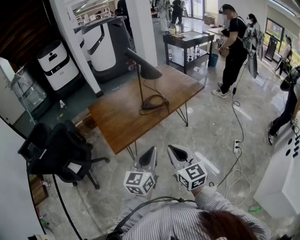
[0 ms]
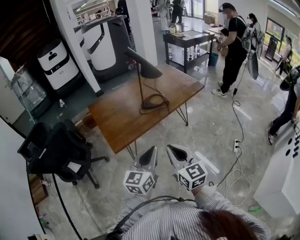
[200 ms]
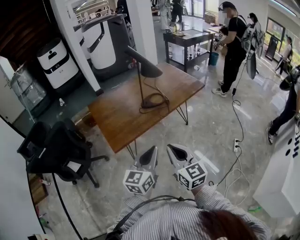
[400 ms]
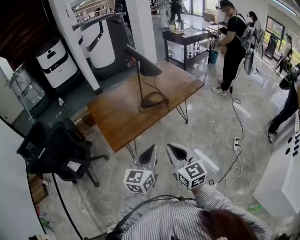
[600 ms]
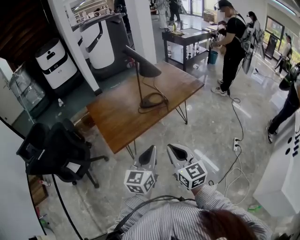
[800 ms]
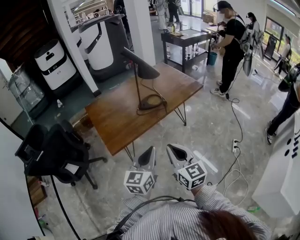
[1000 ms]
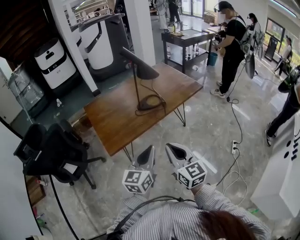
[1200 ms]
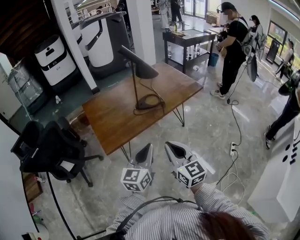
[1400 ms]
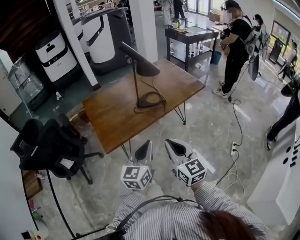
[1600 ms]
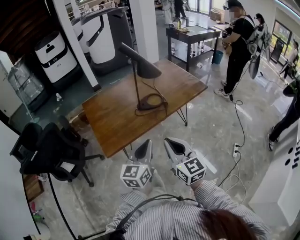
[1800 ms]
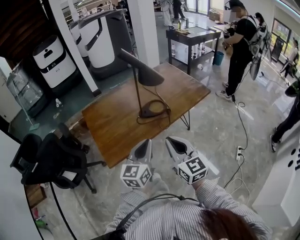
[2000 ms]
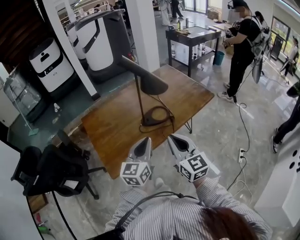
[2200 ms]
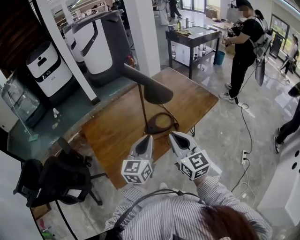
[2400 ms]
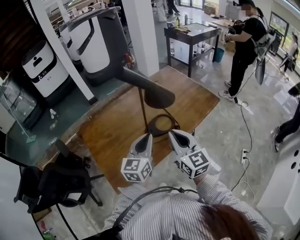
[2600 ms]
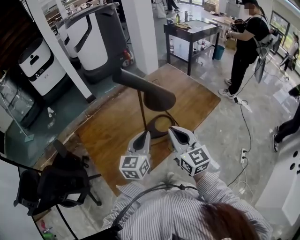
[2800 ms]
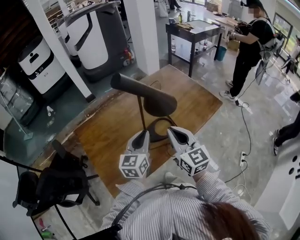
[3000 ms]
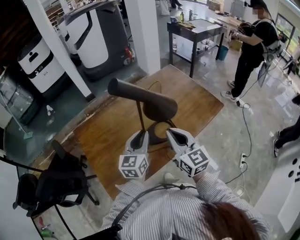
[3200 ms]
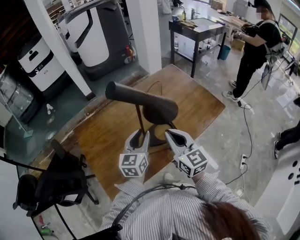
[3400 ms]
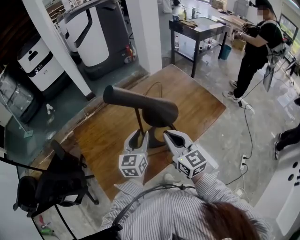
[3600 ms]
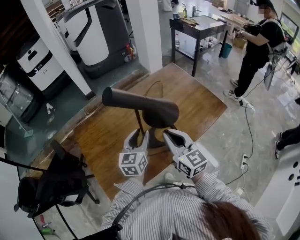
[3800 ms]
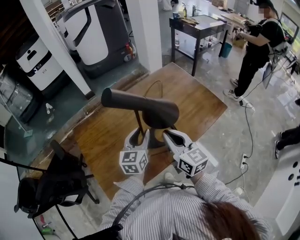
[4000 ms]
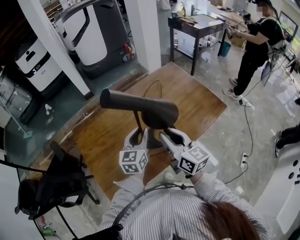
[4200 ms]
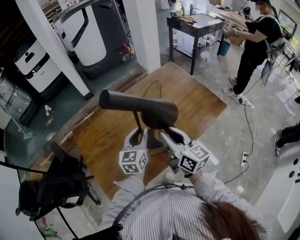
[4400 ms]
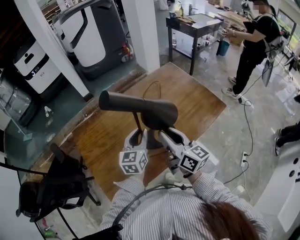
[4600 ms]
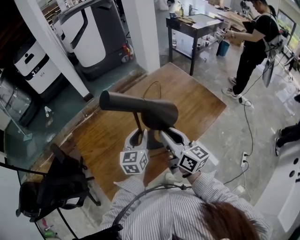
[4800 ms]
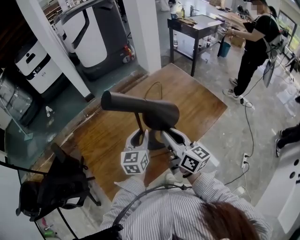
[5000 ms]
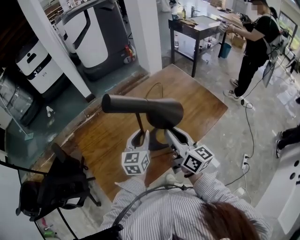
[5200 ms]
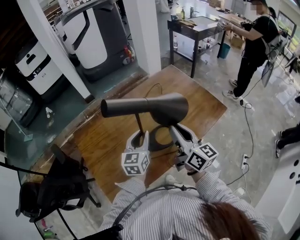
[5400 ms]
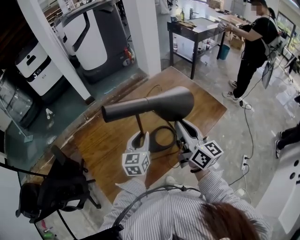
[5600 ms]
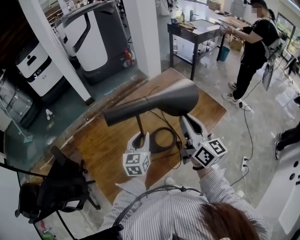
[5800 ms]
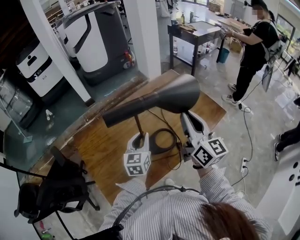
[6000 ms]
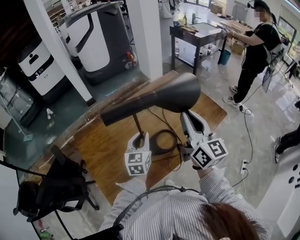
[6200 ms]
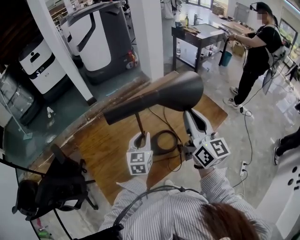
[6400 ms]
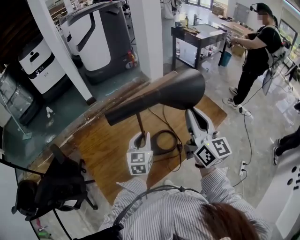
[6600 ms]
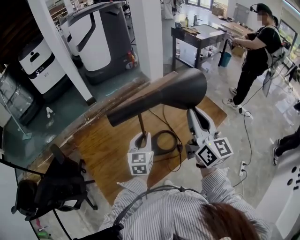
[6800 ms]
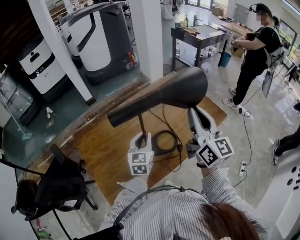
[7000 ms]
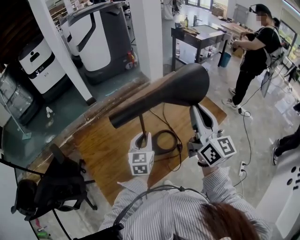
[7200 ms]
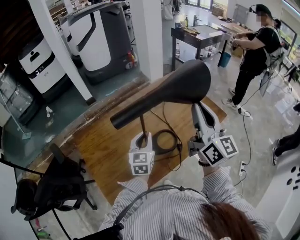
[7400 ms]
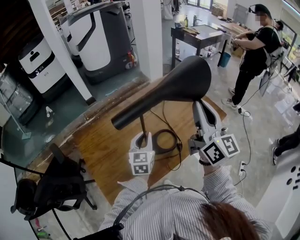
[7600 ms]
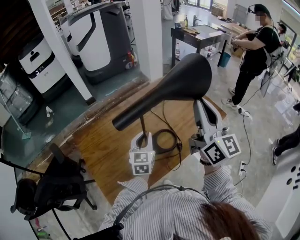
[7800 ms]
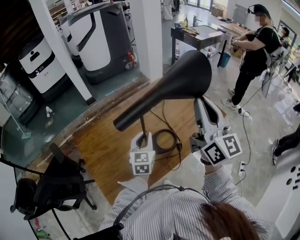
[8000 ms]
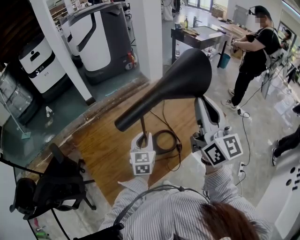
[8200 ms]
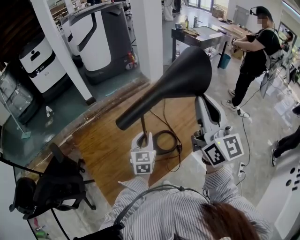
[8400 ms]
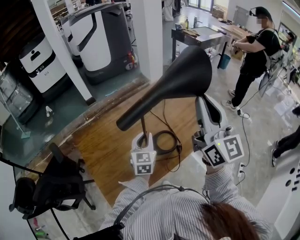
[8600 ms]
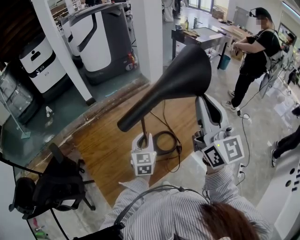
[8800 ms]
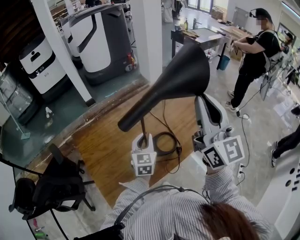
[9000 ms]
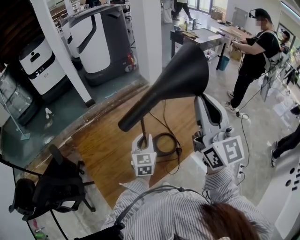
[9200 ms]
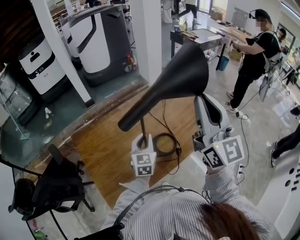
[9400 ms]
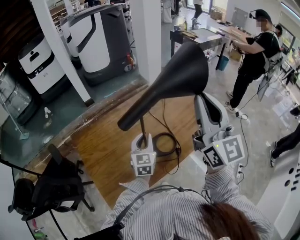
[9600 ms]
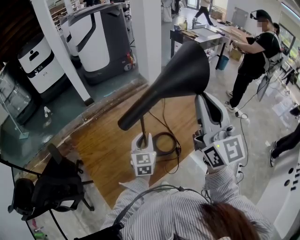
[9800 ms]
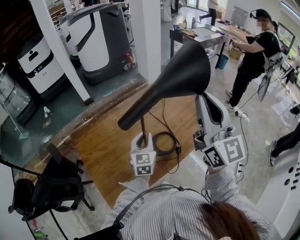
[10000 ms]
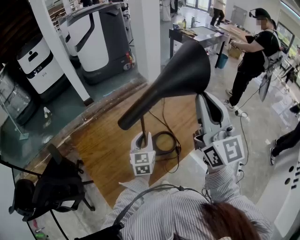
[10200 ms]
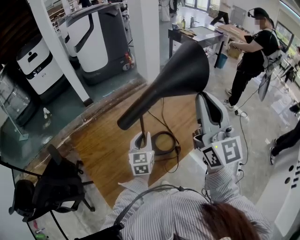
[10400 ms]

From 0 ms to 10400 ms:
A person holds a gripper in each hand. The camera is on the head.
From 0 ms to 1400 ms: The right gripper changes place by roughly 5 cm. The left gripper shifts by about 5 cm.
From 1400 ms to 3000 ms: The two grippers go some 40 cm forward.
From 3000 ms to 4400 ms: Both grippers travel together forward, roughly 5 cm. The right gripper rotates some 20 degrees, and opens.
From 4400 ms to 6000 ms: The right gripper travels upward and to the right by approximately 10 cm, and changes its angle by about 20 degrees.
From 6000 ms to 7400 ms: The right gripper goes roughly 5 cm upward.
From 7400 ms to 9000 ms: The right gripper heads upward, covering some 5 cm.
From 9000 ms to 10400 ms: The grippers move only a little.

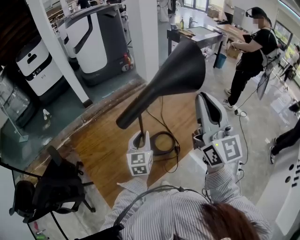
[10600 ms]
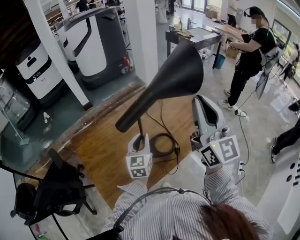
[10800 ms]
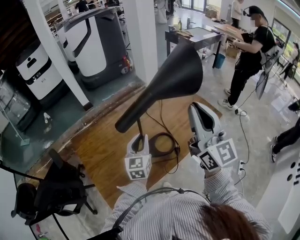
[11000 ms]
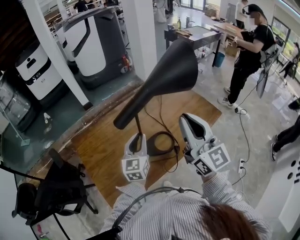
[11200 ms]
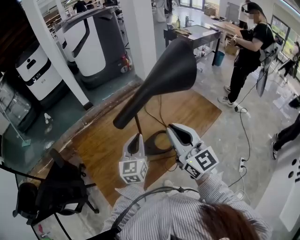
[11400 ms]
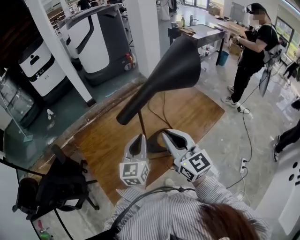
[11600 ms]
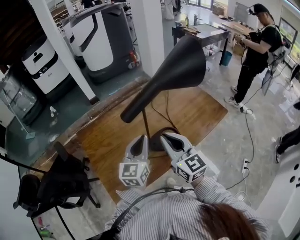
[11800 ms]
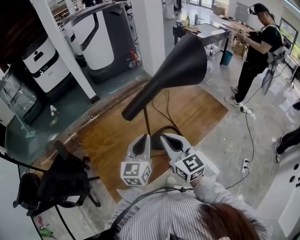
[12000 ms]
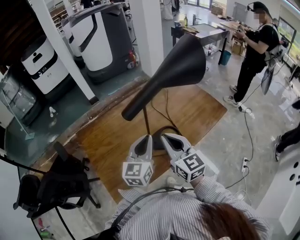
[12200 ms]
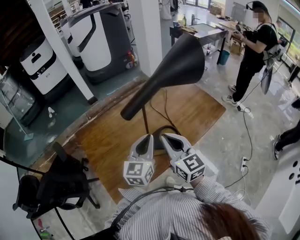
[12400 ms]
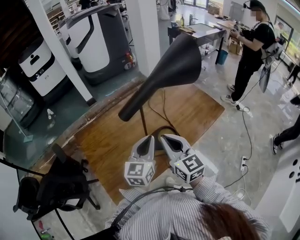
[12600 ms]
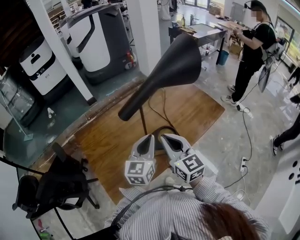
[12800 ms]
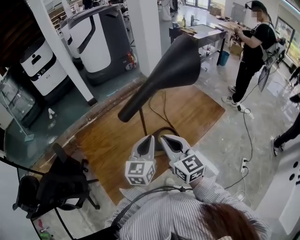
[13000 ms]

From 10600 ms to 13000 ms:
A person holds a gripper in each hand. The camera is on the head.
From 10600 ms to 11800 ms: The left gripper shifts approximately 10 cm backward and upward, while the right gripper heads downward and to the left, covering approximately 25 cm, and turns by approximately 30 degrees.
From 11800 ms to 13000 ms: There are only small adjustments of the grippers.

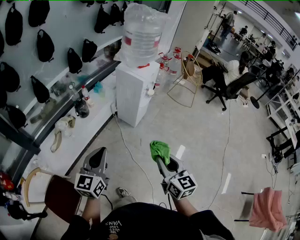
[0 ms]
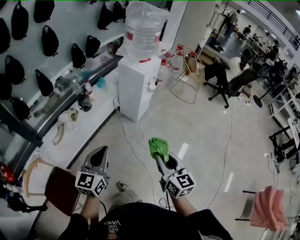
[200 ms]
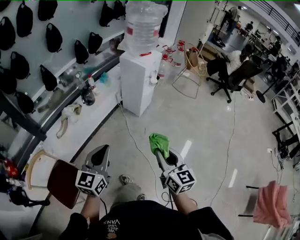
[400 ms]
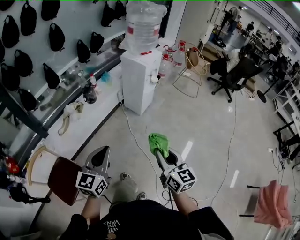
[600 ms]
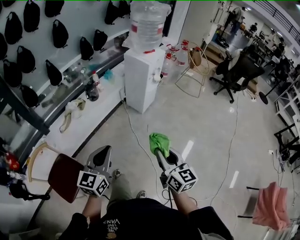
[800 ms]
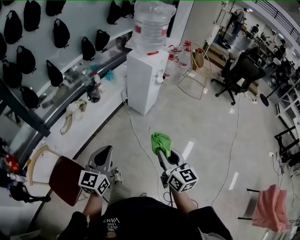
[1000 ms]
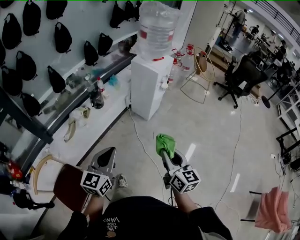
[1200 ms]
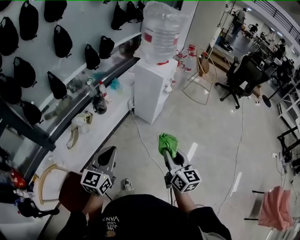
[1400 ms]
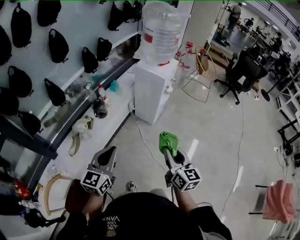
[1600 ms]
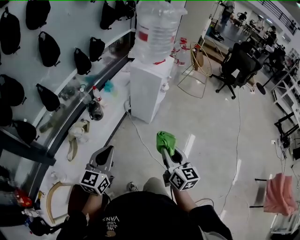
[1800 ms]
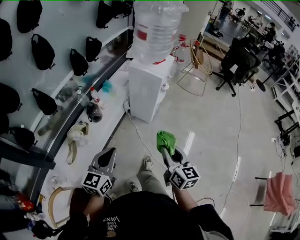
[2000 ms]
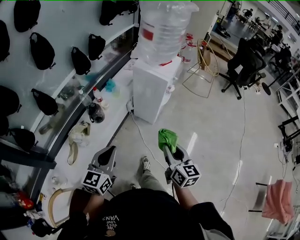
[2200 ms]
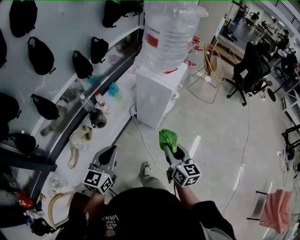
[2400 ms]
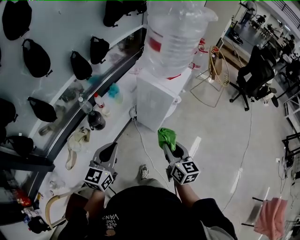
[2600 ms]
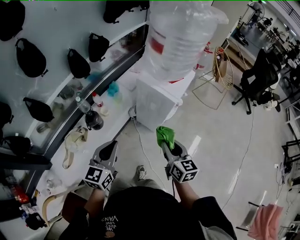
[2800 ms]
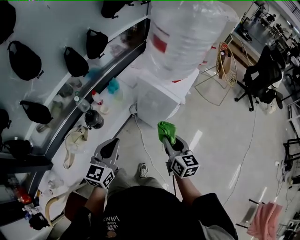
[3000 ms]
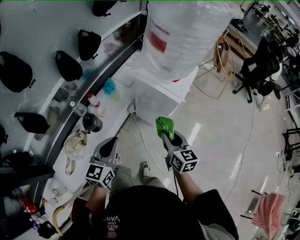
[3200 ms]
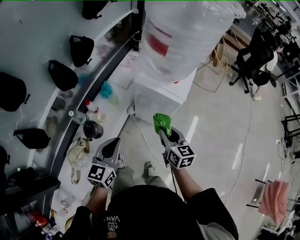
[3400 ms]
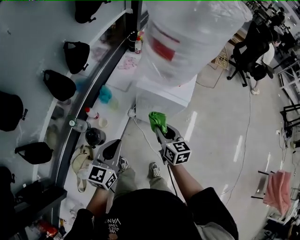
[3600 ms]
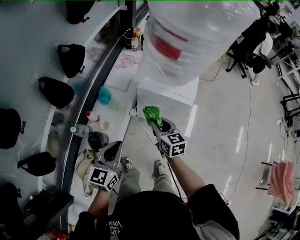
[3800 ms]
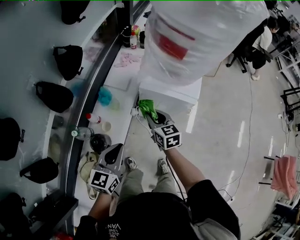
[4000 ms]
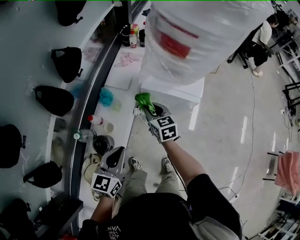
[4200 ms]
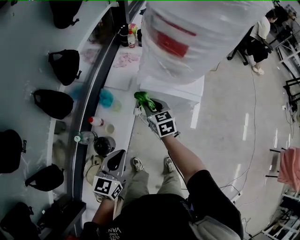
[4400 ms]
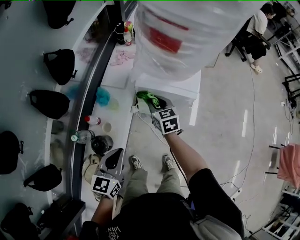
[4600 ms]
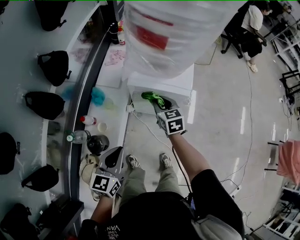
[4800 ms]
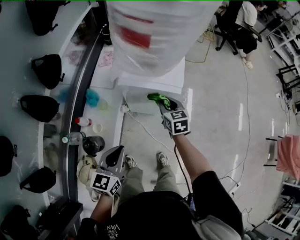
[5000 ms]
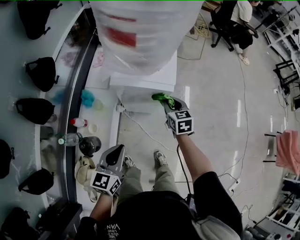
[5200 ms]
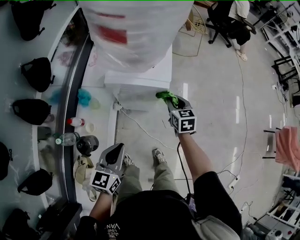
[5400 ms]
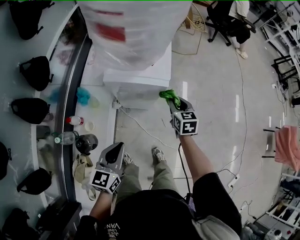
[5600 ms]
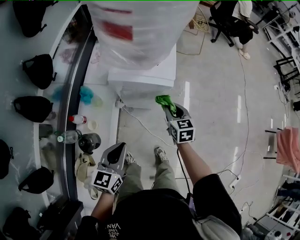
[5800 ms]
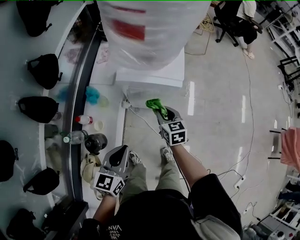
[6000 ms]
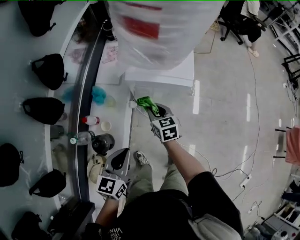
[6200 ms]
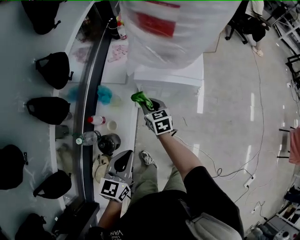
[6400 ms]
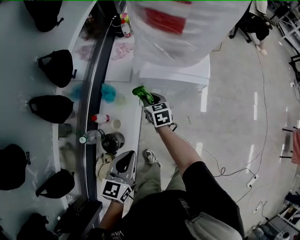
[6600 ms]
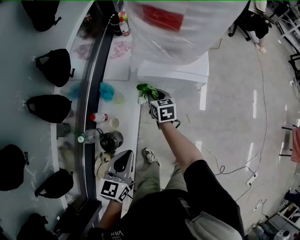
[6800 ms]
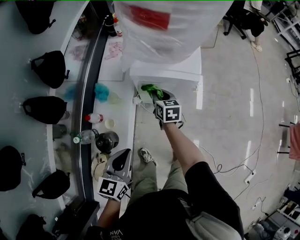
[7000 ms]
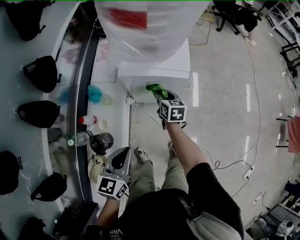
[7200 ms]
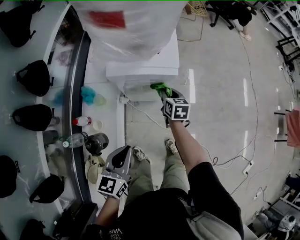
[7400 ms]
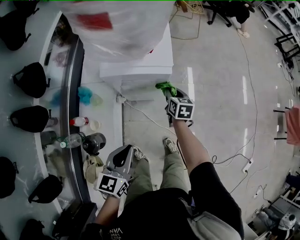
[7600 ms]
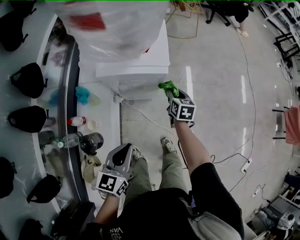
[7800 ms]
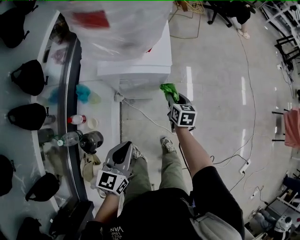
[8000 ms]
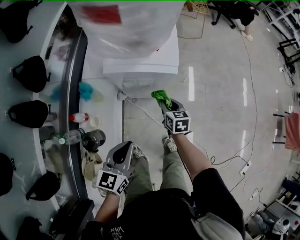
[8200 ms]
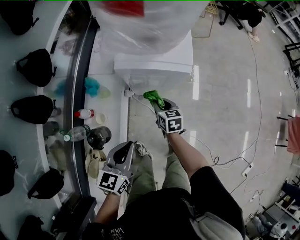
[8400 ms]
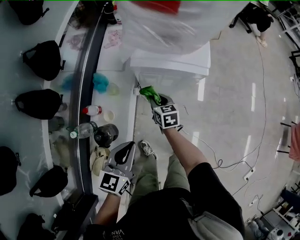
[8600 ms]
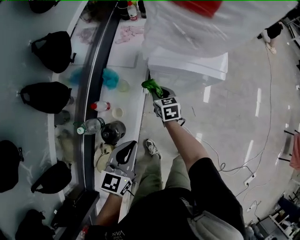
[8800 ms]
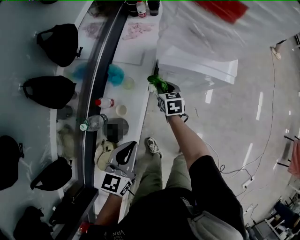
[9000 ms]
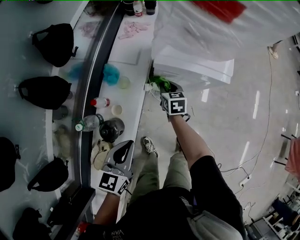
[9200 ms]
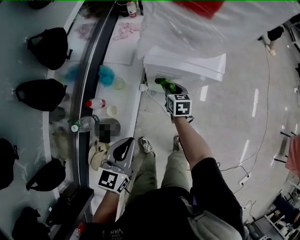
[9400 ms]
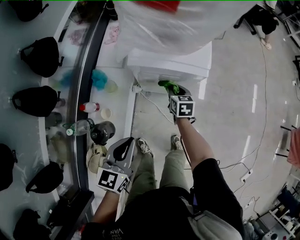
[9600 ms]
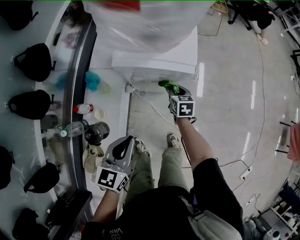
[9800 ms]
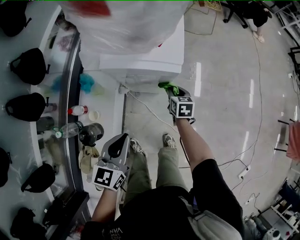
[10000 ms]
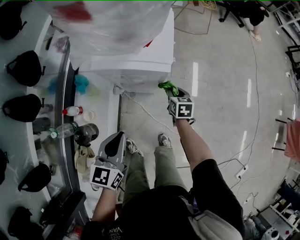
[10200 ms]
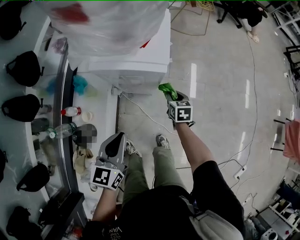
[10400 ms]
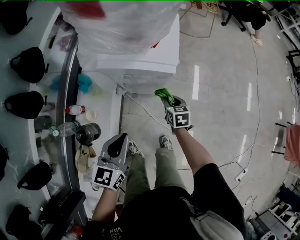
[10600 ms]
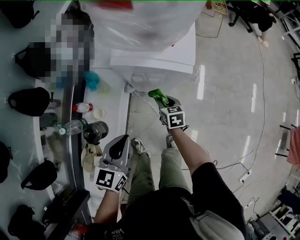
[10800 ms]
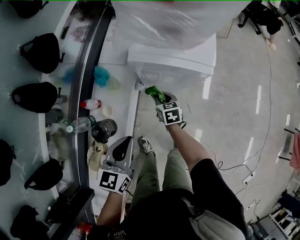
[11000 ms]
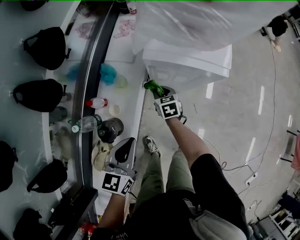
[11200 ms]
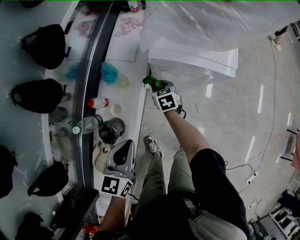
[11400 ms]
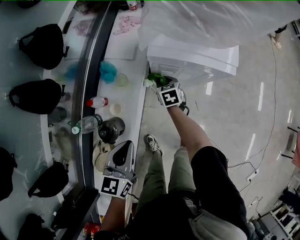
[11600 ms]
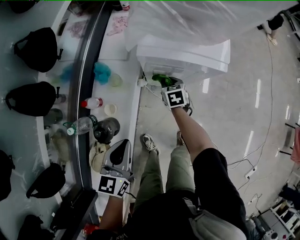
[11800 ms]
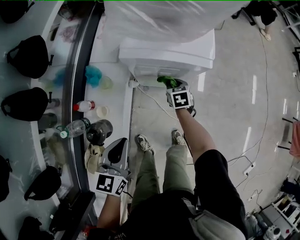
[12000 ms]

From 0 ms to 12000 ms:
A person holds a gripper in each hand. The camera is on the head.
From 0 ms to 1600 ms: The two grippers go approximately 10 cm to the left. The right gripper moves about 10 cm backward and comes back. The left gripper reaches about 15 cm backward, then returns.
From 1600 ms to 3000 ms: Both grippers travel together forward, about 35 cm.
From 3000 ms to 4400 ms: The left gripper is displaced forward, to the left and downward by roughly 20 cm, and turns by about 20 degrees. Meanwhile the right gripper goes some 35 cm forward, to the left and downward.
From 4400 ms to 6000 ms: The right gripper is displaced to the right and backward by some 15 cm, while the left gripper heads to the right, covering approximately 10 cm.
From 6000 ms to 7600 ms: The right gripper moves to the right and forward, approximately 10 cm, and turns by approximately 20 degrees.
From 7600 ms to 9000 ms: The left gripper shifts some 15 cm to the left. The right gripper is displaced to the left by some 25 cm, and turns by about 20 degrees.
From 9000 ms to 10400 ms: The left gripper travels to the right by approximately 15 cm. Meanwhile the right gripper travels to the right by approximately 30 cm.
From 10400 ms to 12000 ms: The right gripper heads to the left and downward, covering about 15 cm; the left gripper shifts roughly 10 cm to the left.
